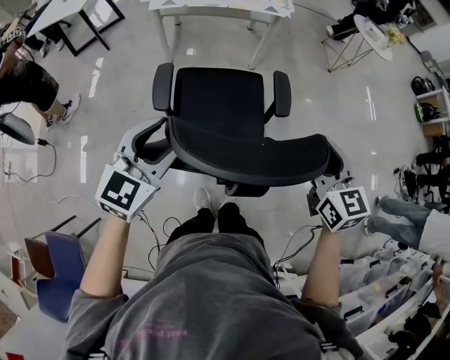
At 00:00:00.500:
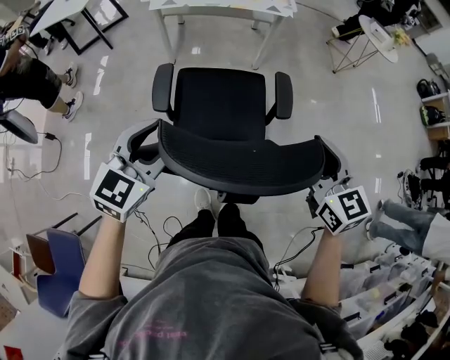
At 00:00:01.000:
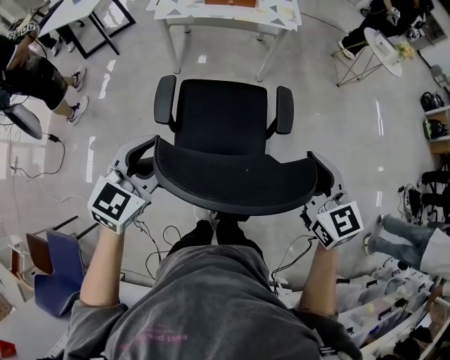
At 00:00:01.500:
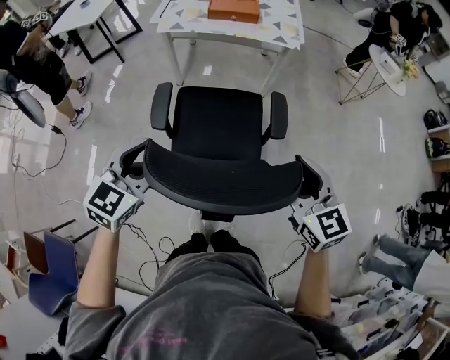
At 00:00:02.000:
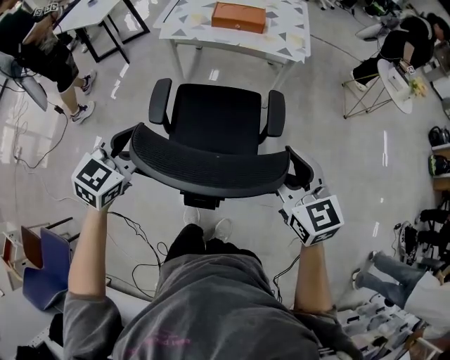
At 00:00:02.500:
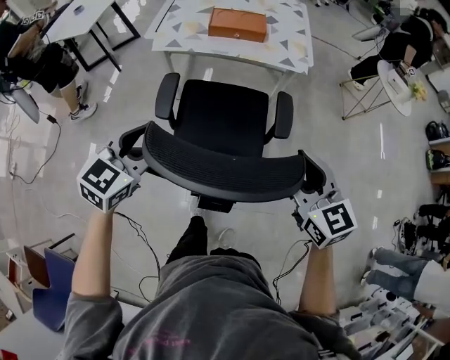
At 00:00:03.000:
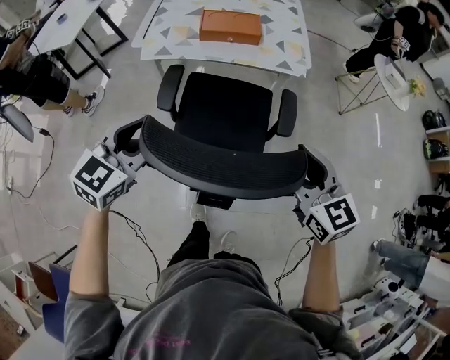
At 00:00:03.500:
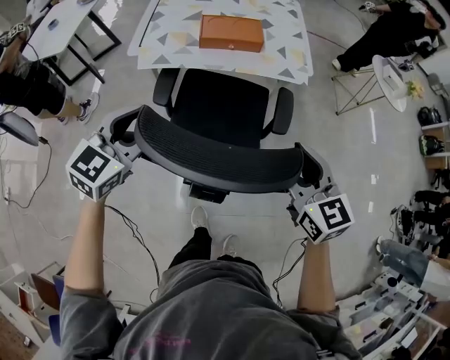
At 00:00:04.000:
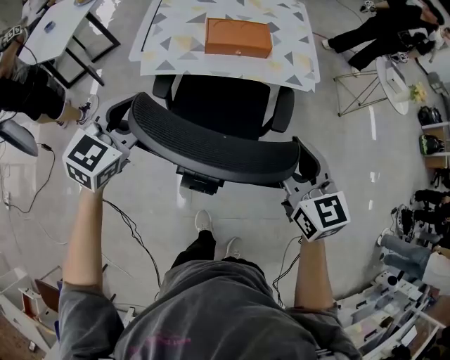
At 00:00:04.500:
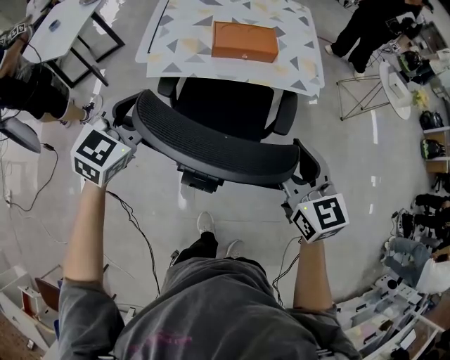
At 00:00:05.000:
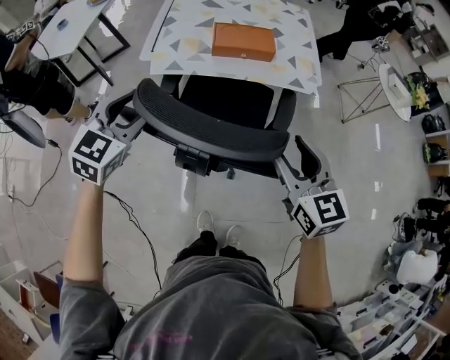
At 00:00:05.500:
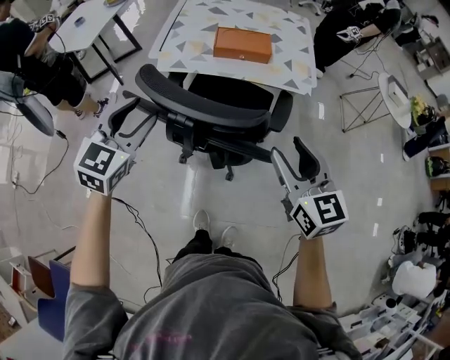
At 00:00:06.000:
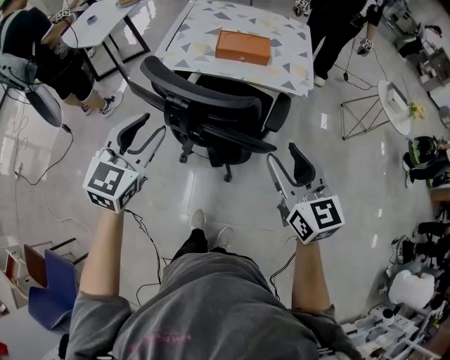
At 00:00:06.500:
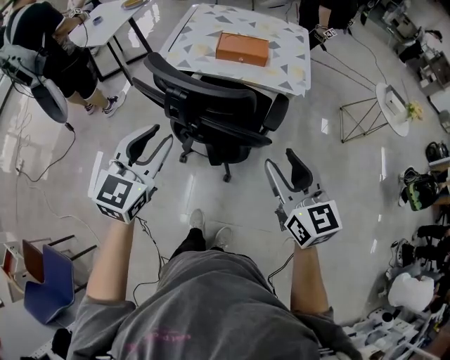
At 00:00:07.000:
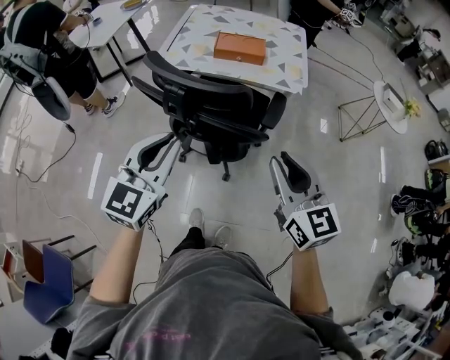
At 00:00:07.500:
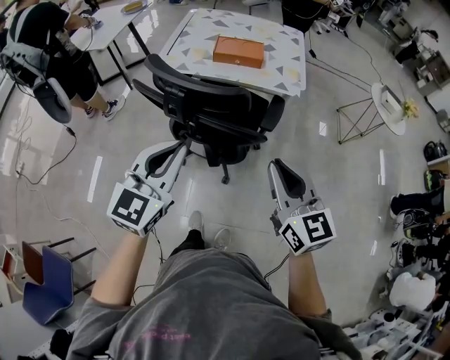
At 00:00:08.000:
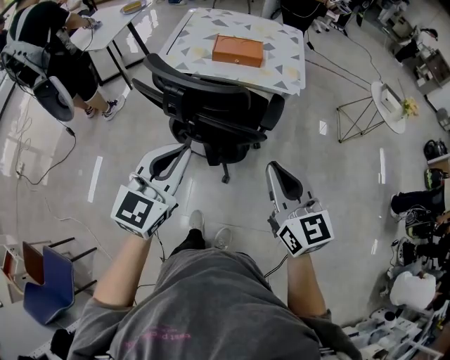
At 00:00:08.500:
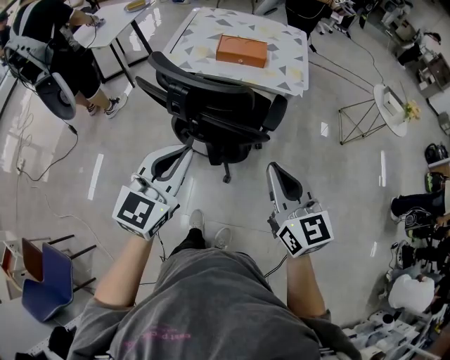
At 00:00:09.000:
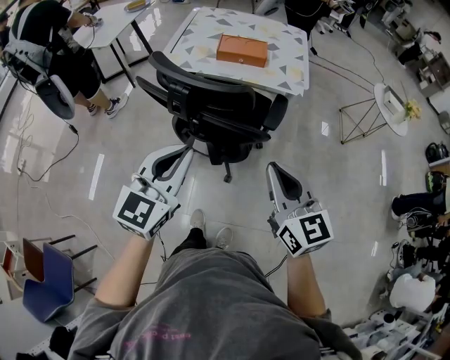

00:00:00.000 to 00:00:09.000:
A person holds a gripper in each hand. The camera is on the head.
00:00:00.000 to 00:00:02.000: The two grippers go some 15 cm forward.
00:00:02.000 to 00:00:04.500: The left gripper travels forward by roughly 35 cm; the right gripper is displaced forward and to the left by about 30 cm.
00:00:04.500 to 00:00:07.000: The two grippers go some 25 cm backward and to the right. The left gripper turns by roughly 20 degrees, and closes, while the right gripper closes.
00:00:07.000 to 00:00:09.000: The right gripper closes up.
